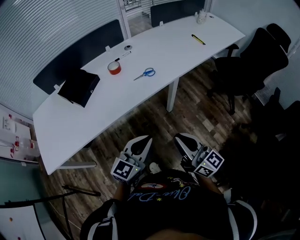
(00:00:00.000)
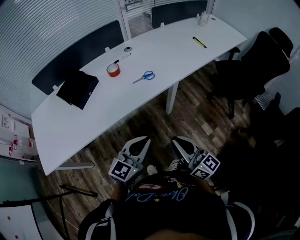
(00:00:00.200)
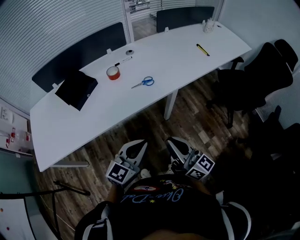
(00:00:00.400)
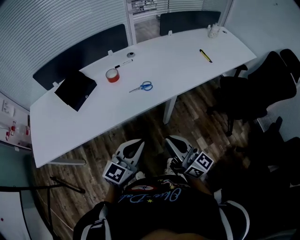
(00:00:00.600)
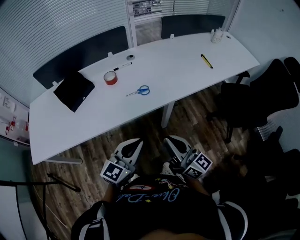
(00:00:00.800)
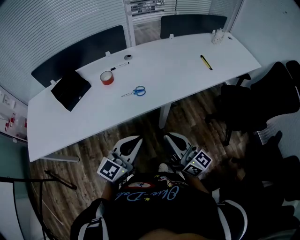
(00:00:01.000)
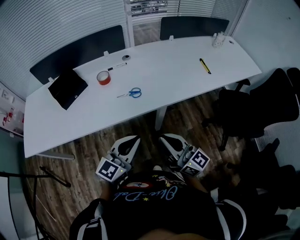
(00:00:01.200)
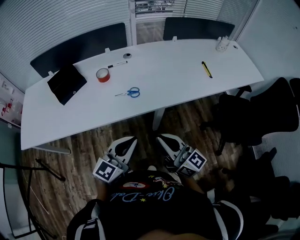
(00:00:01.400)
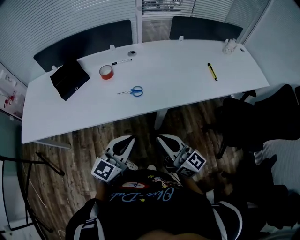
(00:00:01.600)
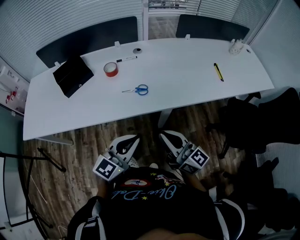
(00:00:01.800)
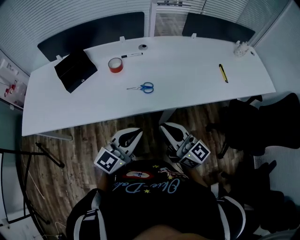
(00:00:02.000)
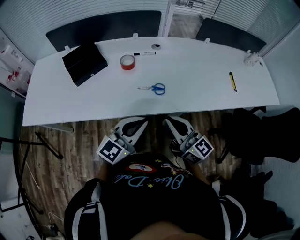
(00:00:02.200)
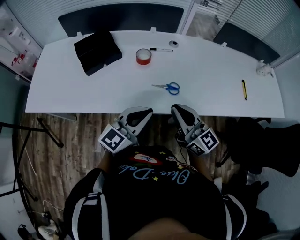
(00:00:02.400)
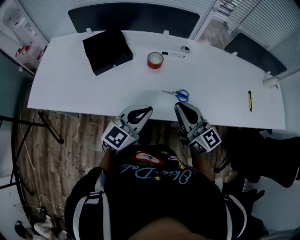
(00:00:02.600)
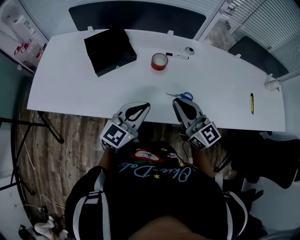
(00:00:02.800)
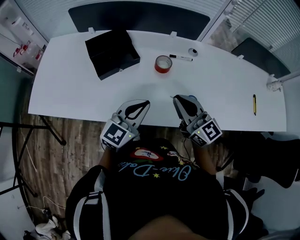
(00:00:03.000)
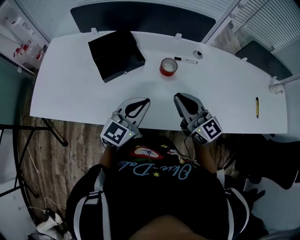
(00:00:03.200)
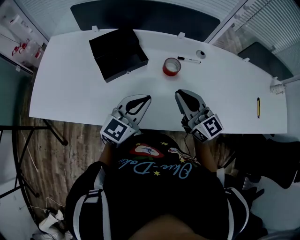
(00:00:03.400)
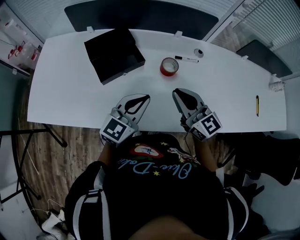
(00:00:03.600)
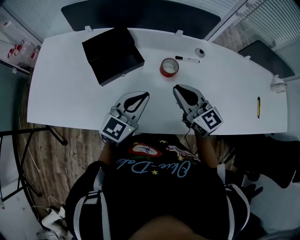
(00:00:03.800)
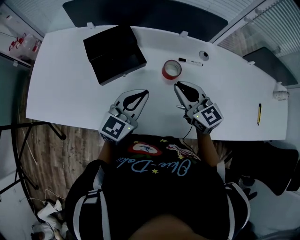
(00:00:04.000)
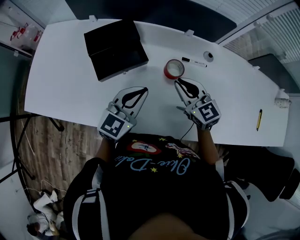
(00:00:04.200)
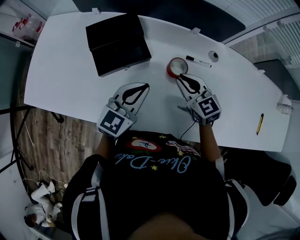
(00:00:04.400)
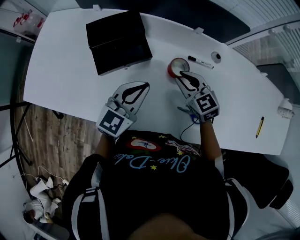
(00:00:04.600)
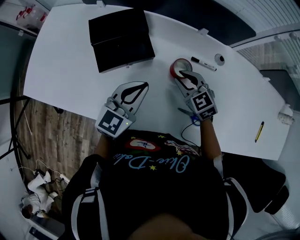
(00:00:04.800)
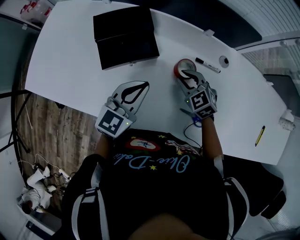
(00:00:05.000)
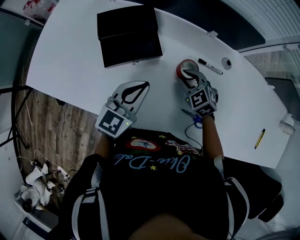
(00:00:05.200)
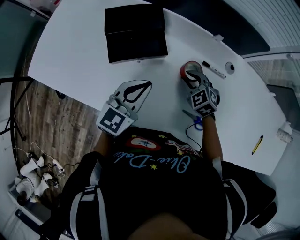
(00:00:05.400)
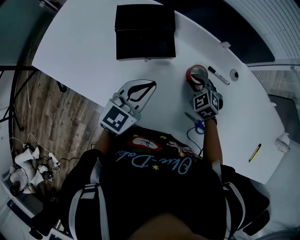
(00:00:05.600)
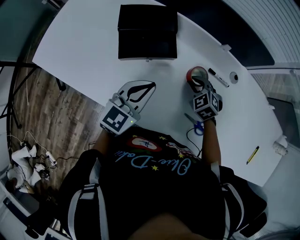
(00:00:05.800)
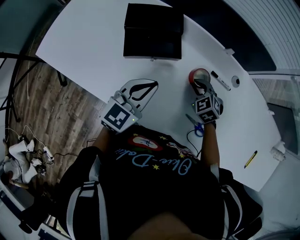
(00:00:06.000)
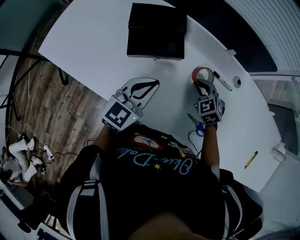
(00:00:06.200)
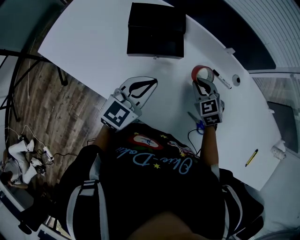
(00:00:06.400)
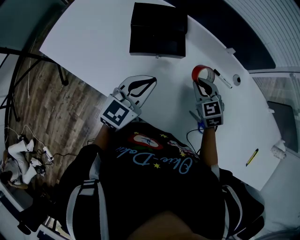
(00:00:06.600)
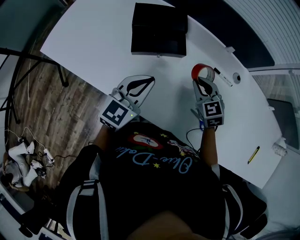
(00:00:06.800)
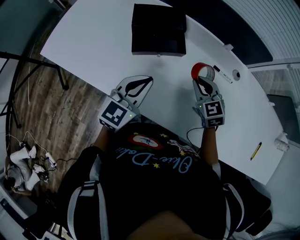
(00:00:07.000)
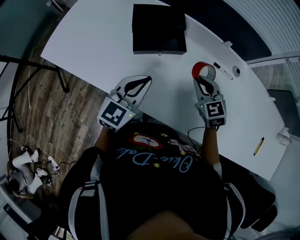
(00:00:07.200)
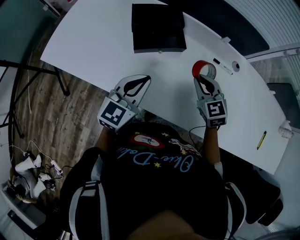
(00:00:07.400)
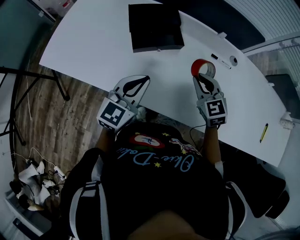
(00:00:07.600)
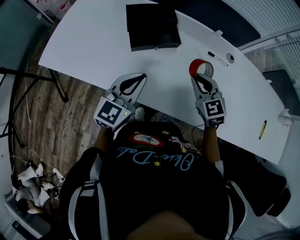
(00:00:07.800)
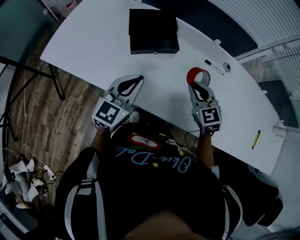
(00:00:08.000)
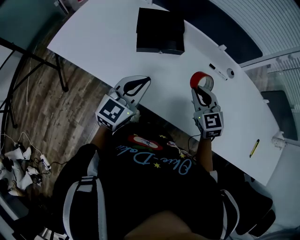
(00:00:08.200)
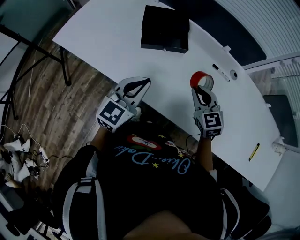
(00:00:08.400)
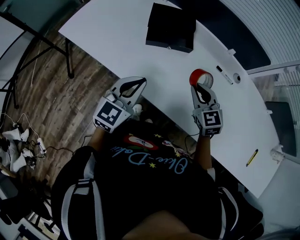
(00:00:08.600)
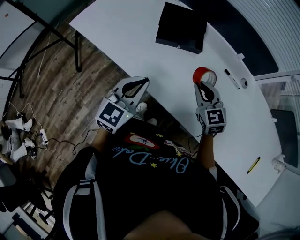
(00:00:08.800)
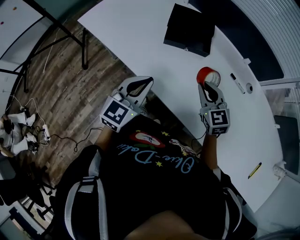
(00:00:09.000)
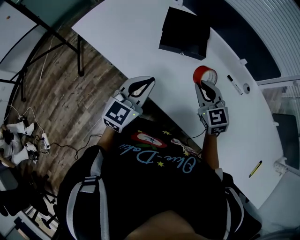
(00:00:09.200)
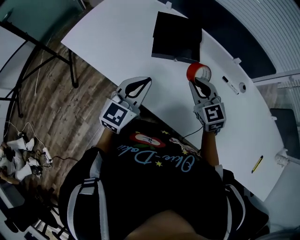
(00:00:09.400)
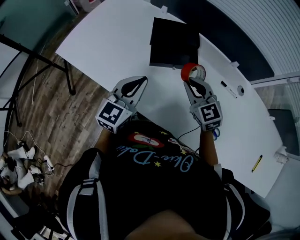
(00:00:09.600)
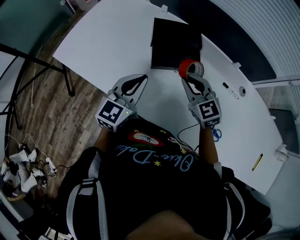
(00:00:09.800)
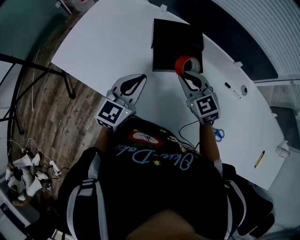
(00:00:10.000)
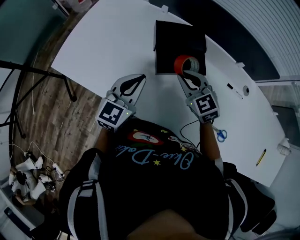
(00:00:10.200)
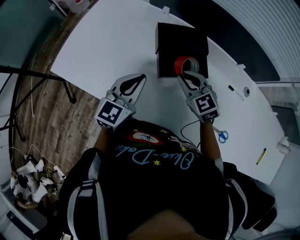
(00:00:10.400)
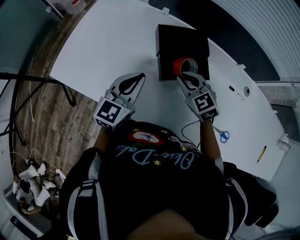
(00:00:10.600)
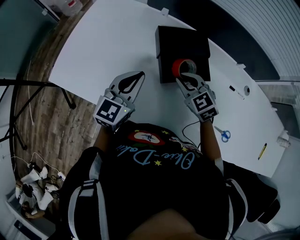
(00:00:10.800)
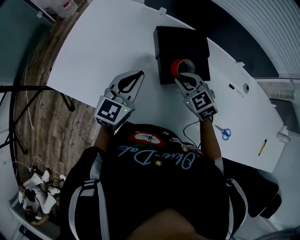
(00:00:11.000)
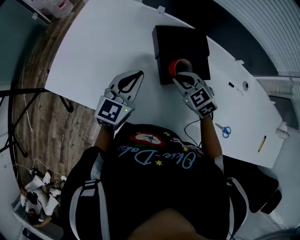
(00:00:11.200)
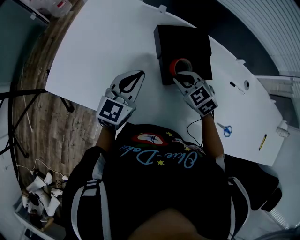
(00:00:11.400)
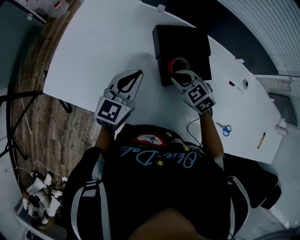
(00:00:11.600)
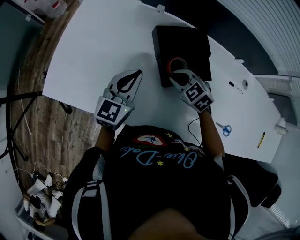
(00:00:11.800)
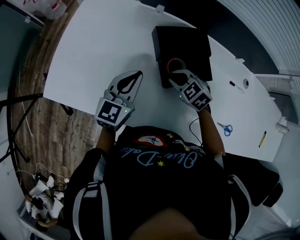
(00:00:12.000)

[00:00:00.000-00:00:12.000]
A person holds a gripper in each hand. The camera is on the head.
00:00:00.000 to 00:00:01.600: Both grippers move forward and to the right, about 20 cm. The left gripper rotates roughly 20 degrees, while the right gripper changes its angle by roughly 20 degrees.
00:00:01.600 to 00:00:03.000: Both grippers move forward and to the left, approximately 30 cm. The right gripper swivels approximately 20 degrees.
00:00:03.000 to 00:00:04.400: The left gripper shifts approximately 15 cm forward; the right gripper moves forward and downward, some 20 cm, and changes its angle by about 30 degrees.
00:00:04.400 to 00:00:06.000: The right gripper goes approximately 10 cm downward, and swivels roughly 40 degrees.
00:00:06.000 to 00:00:07.600: The right gripper shifts approximately 15 cm upward, backward and to the left, and turns by approximately 30 degrees. Meanwhile the left gripper travels to the left and backward by about 10 cm.
00:00:07.600 to 00:00:09.000: The left gripper goes some 10 cm backward, and swivels about 20 degrees.
00:00:09.000 to 00:00:10.400: The left gripper travels forward by roughly 20 cm; the right gripper shifts roughly 20 cm forward and to the left.
00:00:10.400 to 00:00:12.000: The left gripper shifts approximately 10 cm forward, while the right gripper shifts some 10 cm downward, and changes its angle by approximately 20 degrees.

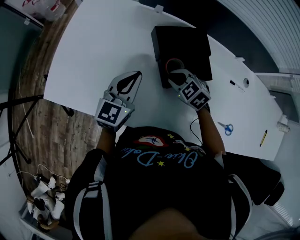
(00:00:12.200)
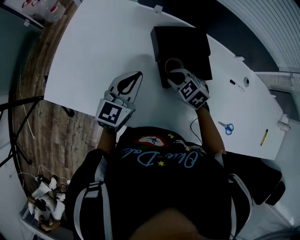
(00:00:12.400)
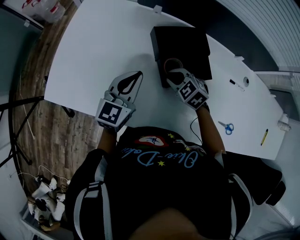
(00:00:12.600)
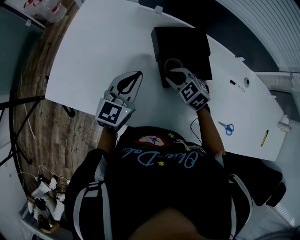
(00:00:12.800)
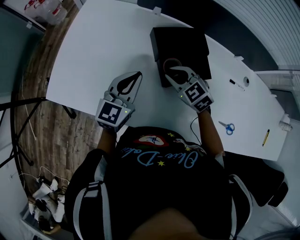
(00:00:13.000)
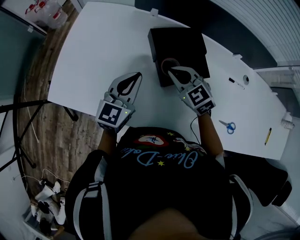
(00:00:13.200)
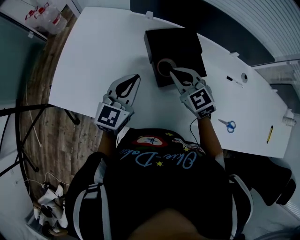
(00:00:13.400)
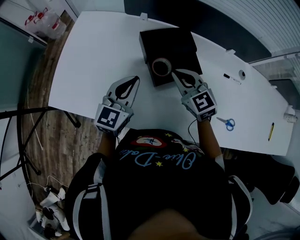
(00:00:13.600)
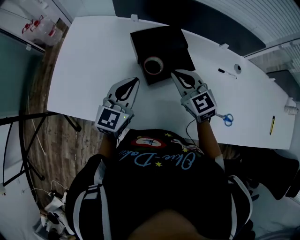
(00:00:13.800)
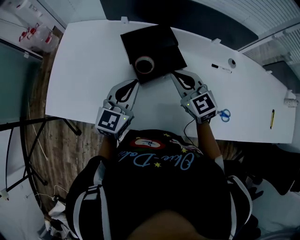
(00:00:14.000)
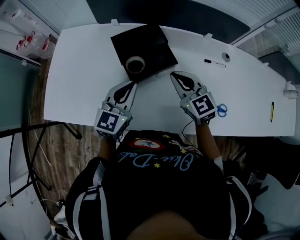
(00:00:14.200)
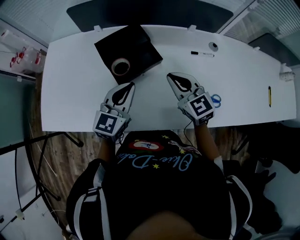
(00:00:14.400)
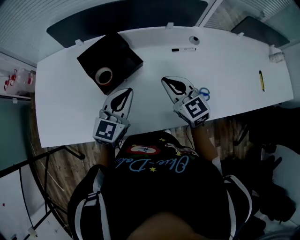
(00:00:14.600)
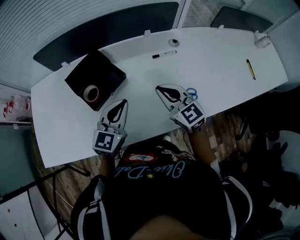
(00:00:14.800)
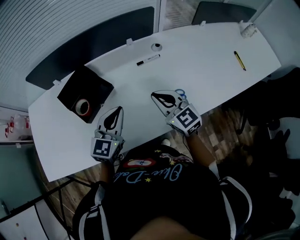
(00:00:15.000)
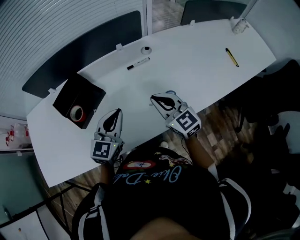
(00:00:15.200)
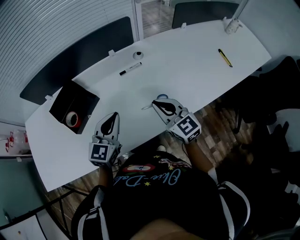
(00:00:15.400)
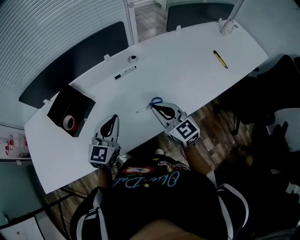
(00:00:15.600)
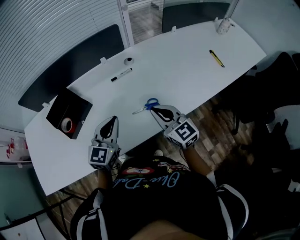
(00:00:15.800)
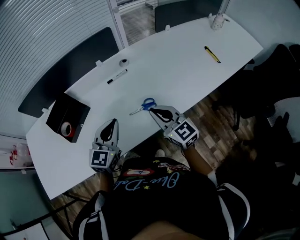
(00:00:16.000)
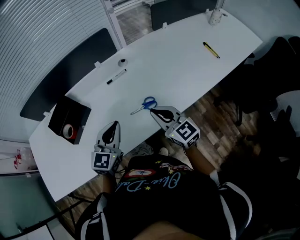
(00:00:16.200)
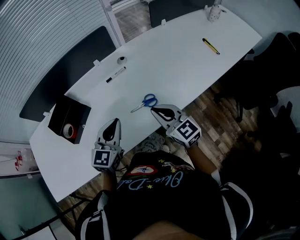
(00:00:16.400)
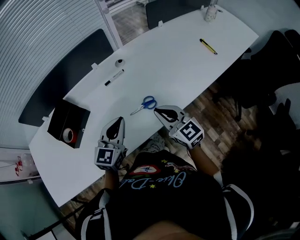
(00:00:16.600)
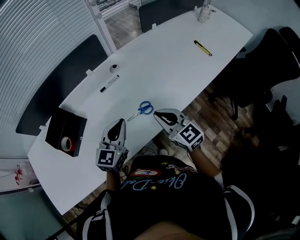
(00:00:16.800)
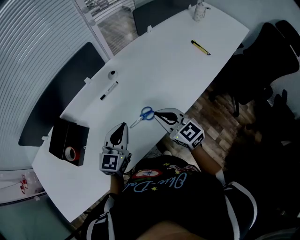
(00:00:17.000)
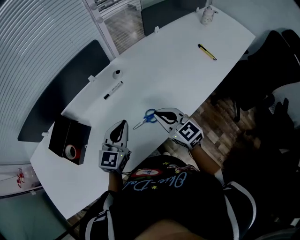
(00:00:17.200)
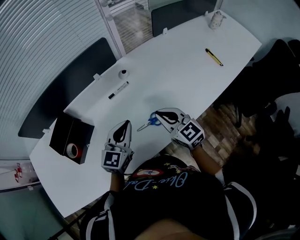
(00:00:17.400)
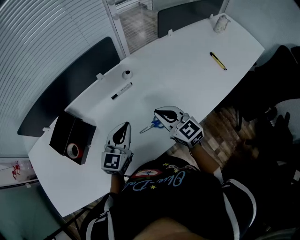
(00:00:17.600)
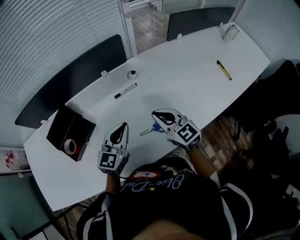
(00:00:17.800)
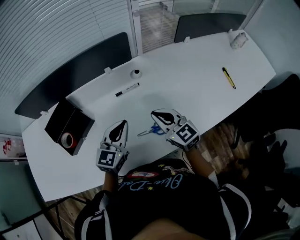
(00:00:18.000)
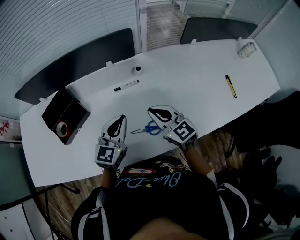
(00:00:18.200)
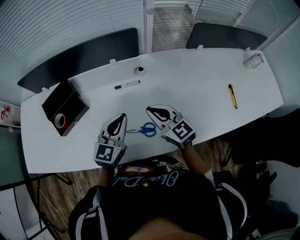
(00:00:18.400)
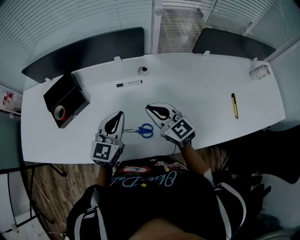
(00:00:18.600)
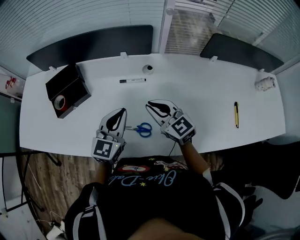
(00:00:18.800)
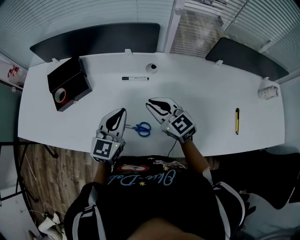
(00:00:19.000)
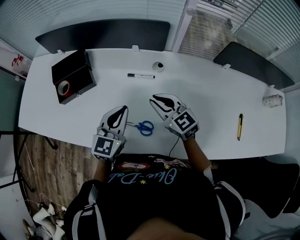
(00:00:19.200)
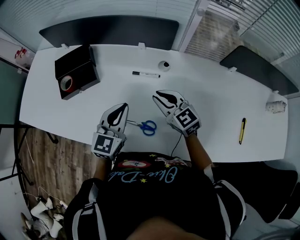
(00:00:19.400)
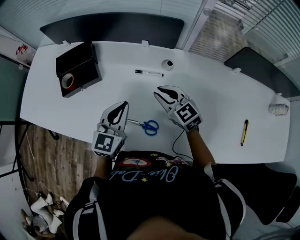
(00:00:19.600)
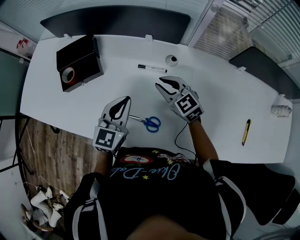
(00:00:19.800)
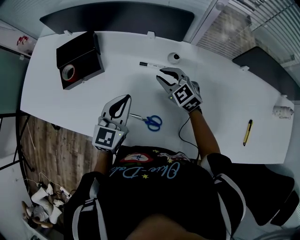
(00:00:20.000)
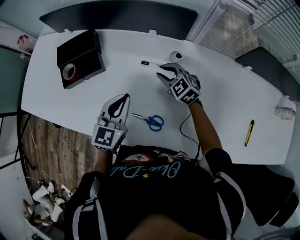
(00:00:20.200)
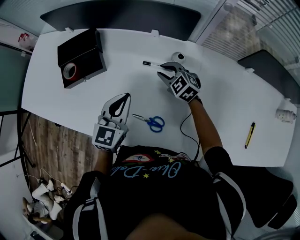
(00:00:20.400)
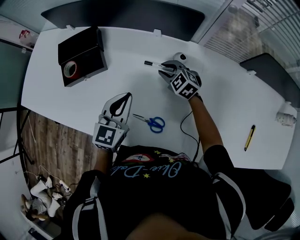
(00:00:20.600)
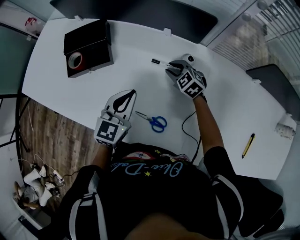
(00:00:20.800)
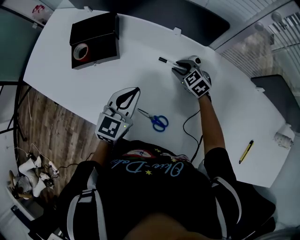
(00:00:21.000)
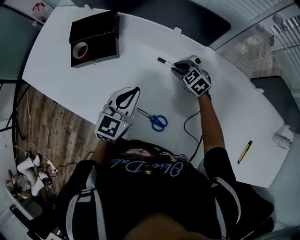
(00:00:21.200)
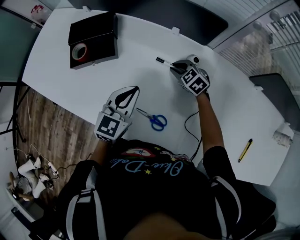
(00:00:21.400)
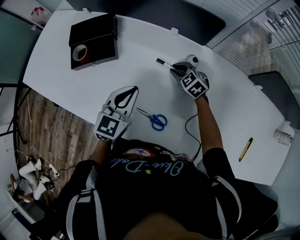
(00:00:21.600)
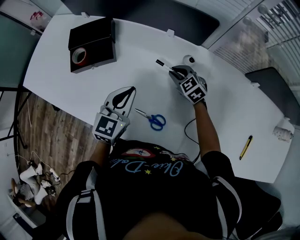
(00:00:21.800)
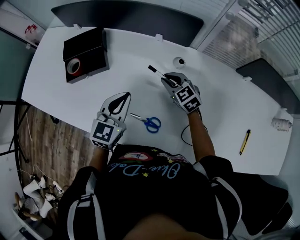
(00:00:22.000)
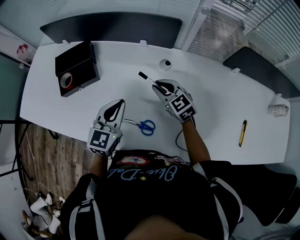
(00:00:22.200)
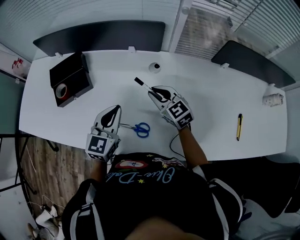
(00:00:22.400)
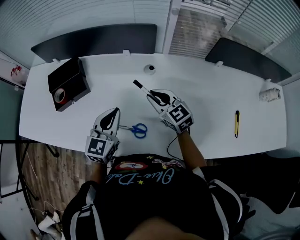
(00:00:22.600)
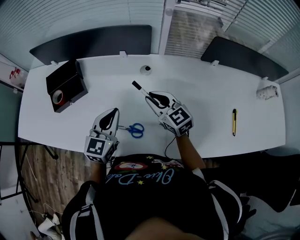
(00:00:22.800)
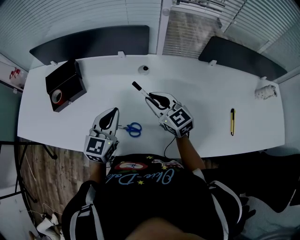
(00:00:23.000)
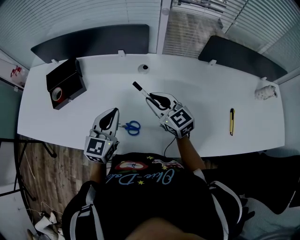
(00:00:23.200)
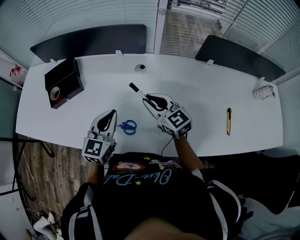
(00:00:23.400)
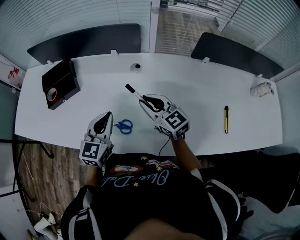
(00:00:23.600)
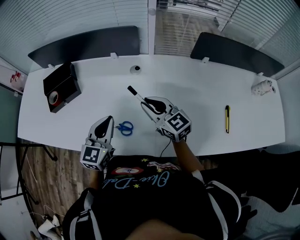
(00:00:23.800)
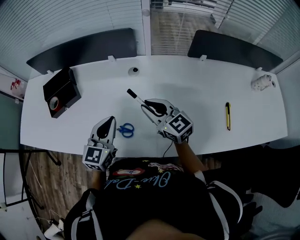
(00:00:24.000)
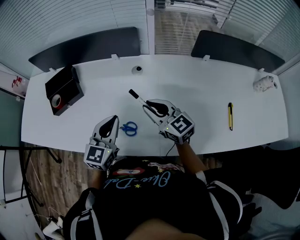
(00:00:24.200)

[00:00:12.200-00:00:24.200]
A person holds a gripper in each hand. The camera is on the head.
00:00:12.200 to 00:00:13.800: The left gripper moves to the right, roughly 5 cm, while the right gripper moves upward and to the right, about 15 cm, and tips its fingers upward by about 30 degrees.
00:00:13.800 to 00:00:15.200: The left gripper moves roughly 30 cm, and rotates roughly 30 degrees. Meanwhile the right gripper ends up roughly 30 cm from where it was, and turns by about 30 degrees.
00:00:15.200 to 00:00:16.600: The left gripper goes some 10 cm to the right. The right gripper heads to the right and backward, covering about 10 cm.
00:00:16.600 to 00:00:18.200: The two grippers go roughly 10 cm forward.
00:00:18.200 to 00:00:19.800: The left gripper turns by approximately 30 degrees, while the right gripper changes place by some 10 cm, changes its angle by approximately 30 degrees, and opens.
00:00:19.800 to 00:00:21.200: The right gripper is displaced downward and forward by some 15 cm, and rotates some 30 degrees.
00:00:21.200 to 00:00:22.600: The right gripper shifts roughly 20 cm upward and backward, and turns by some 40 degrees, while the left gripper moves about 5 cm.
00:00:22.600 to 00:00:24.200: The grippers both shift backward by approximately 5 cm.
